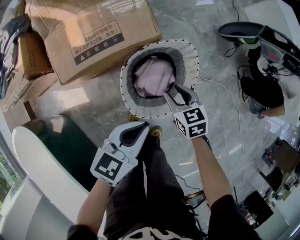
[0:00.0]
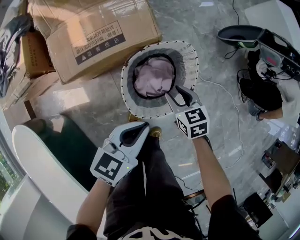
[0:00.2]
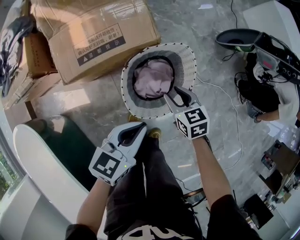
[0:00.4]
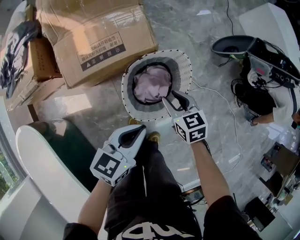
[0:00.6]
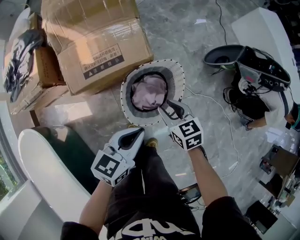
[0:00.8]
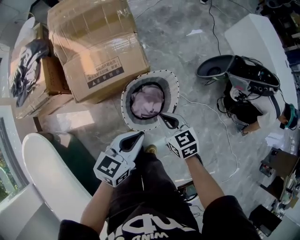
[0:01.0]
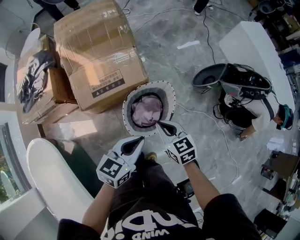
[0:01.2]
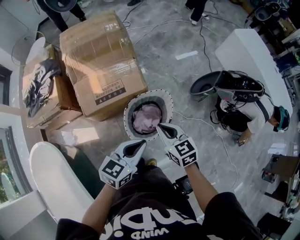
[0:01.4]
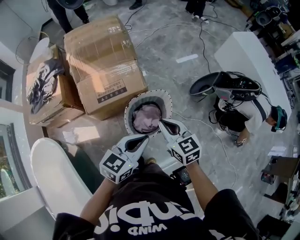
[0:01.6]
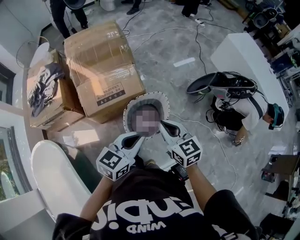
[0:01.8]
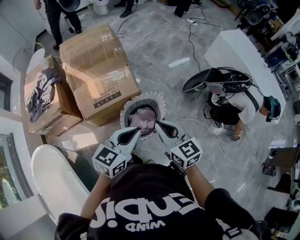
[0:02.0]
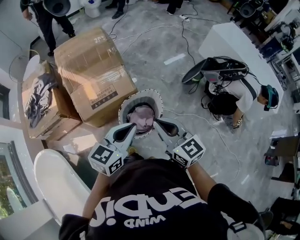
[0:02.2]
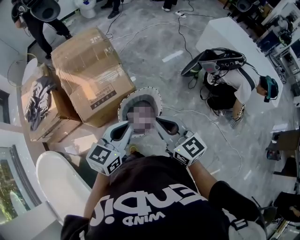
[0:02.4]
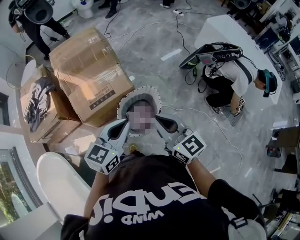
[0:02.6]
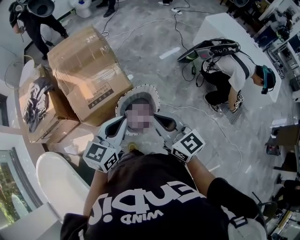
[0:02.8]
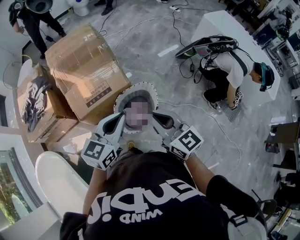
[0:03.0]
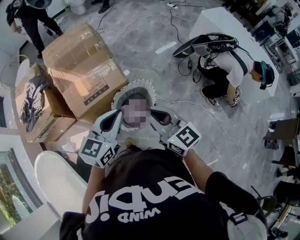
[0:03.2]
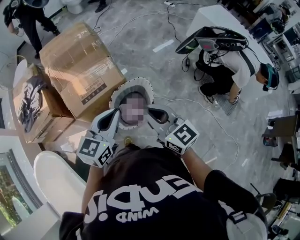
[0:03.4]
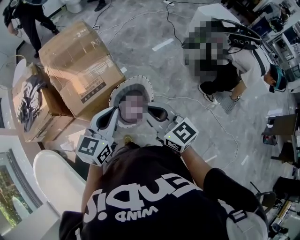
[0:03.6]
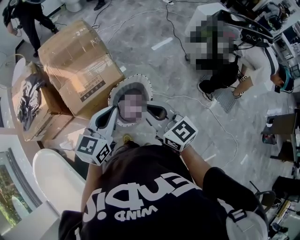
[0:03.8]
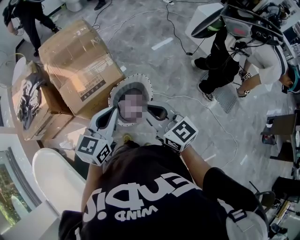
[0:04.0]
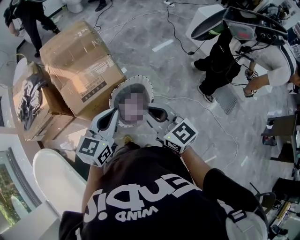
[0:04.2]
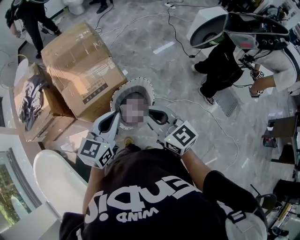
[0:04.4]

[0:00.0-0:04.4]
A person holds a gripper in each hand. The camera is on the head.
0:00.0 to 0:01.4: The two grippers go approximately 25 cm upward. The right gripper closes.
0:01.4 to 0:03.0: The left gripper is displaced upward by some 10 cm, while the right gripper goes about 20 cm upward and backward, and changes its angle by some 30 degrees.
0:03.0 to 0:04.4: The grippers make only small movements.

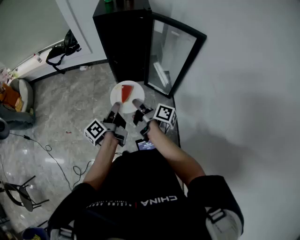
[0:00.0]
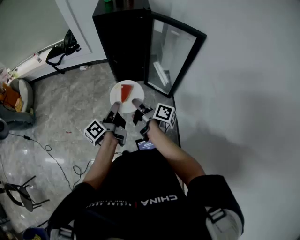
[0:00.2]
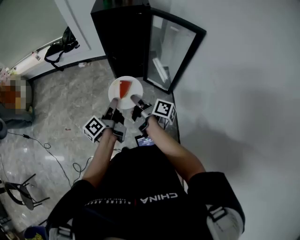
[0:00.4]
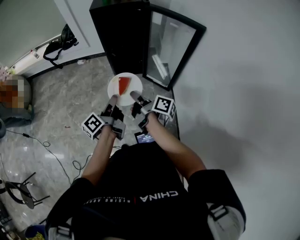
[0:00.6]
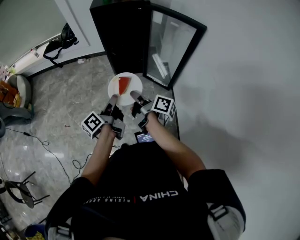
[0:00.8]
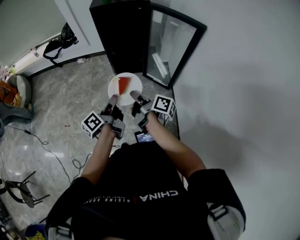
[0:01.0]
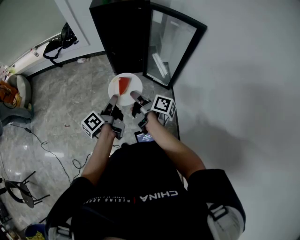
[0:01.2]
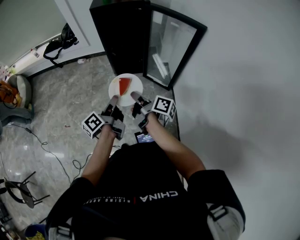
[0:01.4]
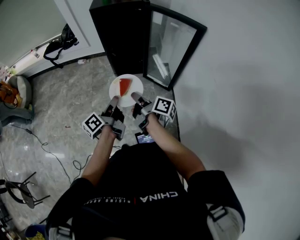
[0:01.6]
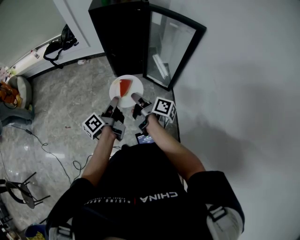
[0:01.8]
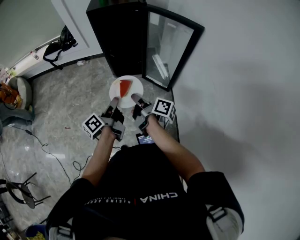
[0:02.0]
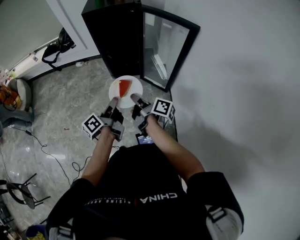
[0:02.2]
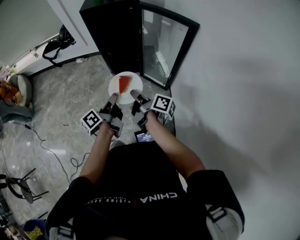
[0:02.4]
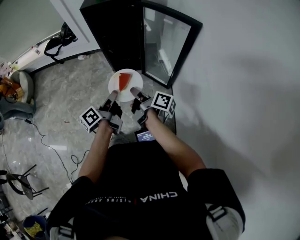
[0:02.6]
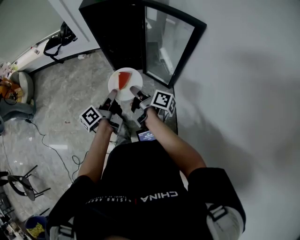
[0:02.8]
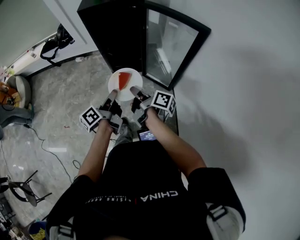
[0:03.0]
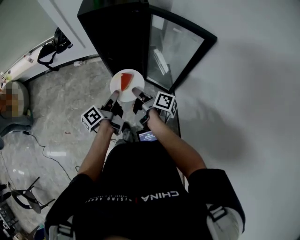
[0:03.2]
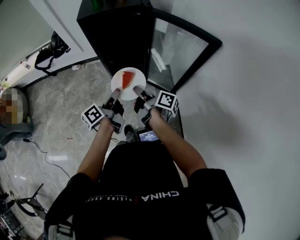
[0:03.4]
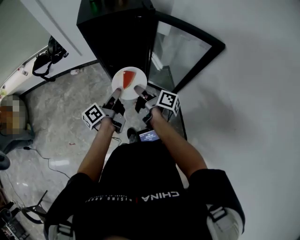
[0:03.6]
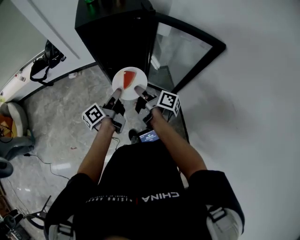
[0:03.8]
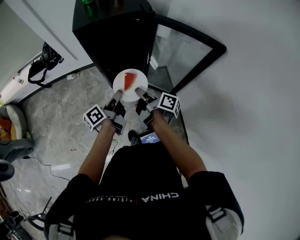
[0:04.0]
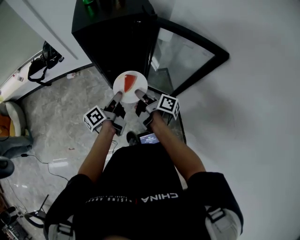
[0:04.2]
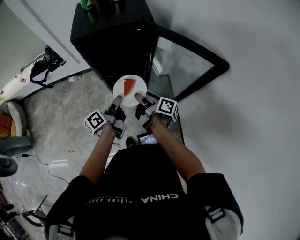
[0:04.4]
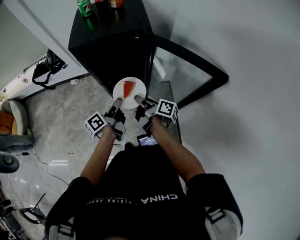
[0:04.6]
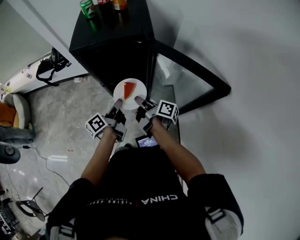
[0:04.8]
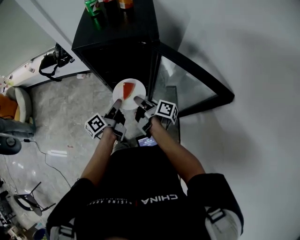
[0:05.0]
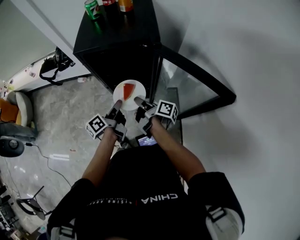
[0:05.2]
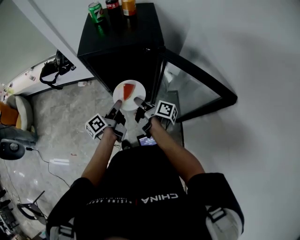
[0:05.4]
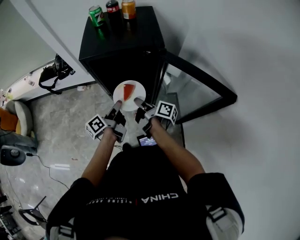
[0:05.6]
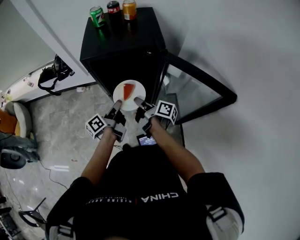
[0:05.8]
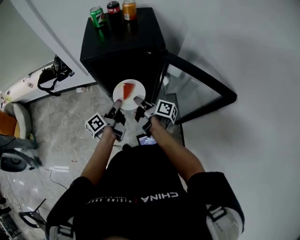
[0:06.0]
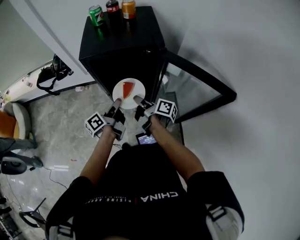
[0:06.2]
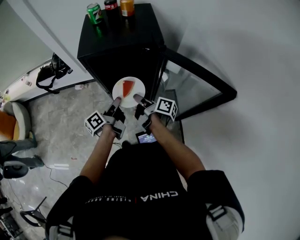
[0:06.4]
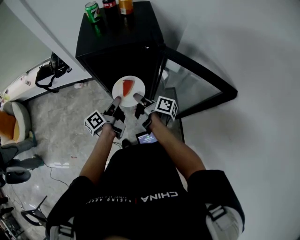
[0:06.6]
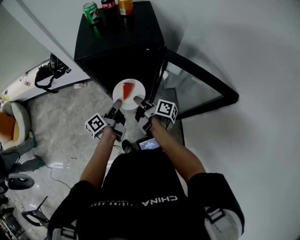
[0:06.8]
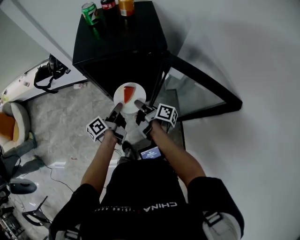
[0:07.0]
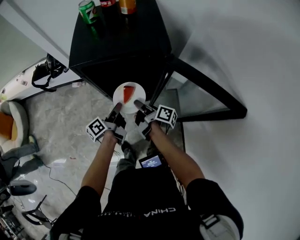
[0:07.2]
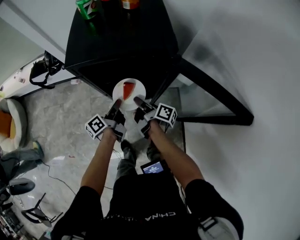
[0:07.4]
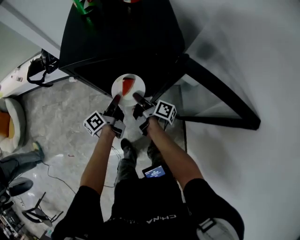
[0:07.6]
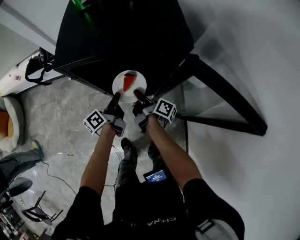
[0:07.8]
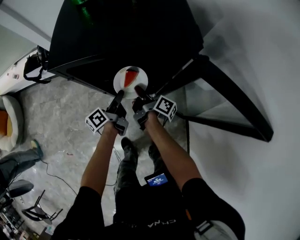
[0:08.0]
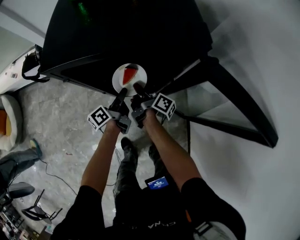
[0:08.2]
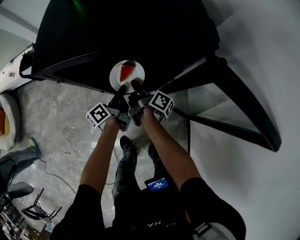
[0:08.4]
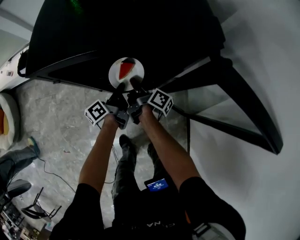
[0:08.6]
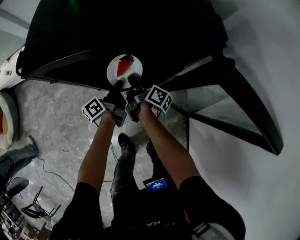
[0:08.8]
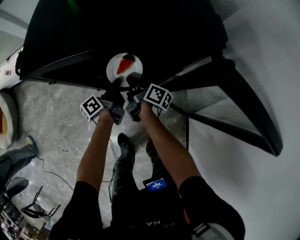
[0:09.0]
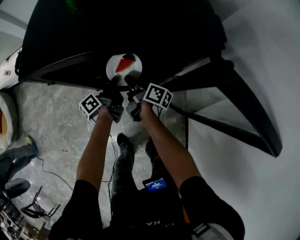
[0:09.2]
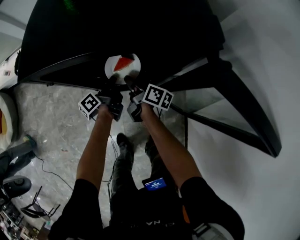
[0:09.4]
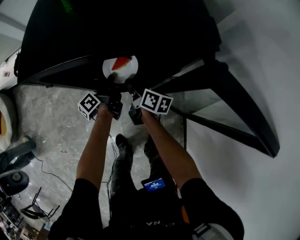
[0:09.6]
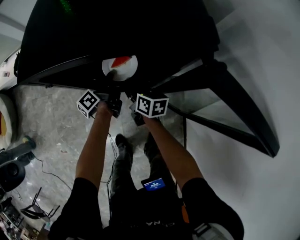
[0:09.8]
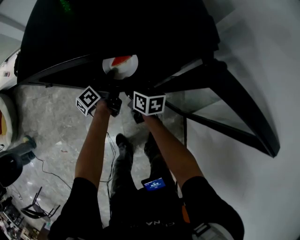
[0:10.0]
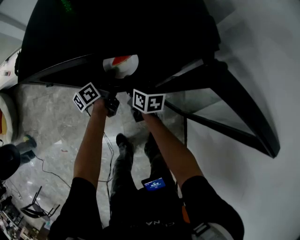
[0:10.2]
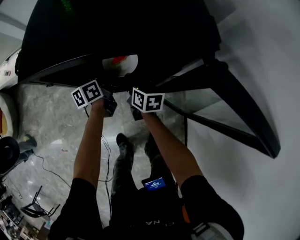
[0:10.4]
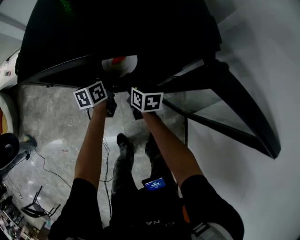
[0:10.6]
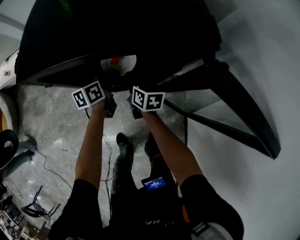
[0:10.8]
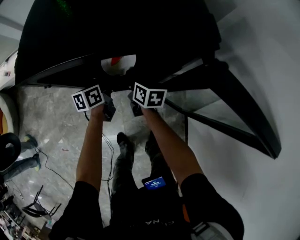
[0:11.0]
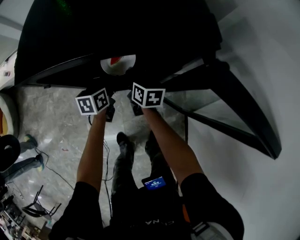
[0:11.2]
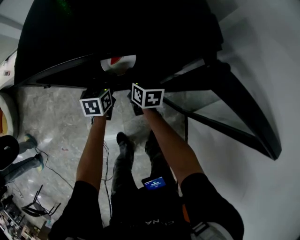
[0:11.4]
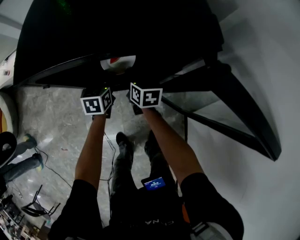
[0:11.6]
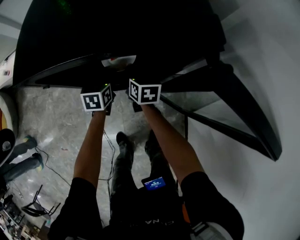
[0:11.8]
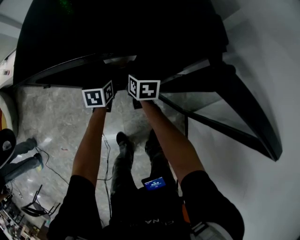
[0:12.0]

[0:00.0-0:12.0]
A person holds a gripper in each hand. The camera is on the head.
0:00.0 to 0:03.0: There are only small adjustments of the grippers.
0:03.0 to 0:04.4: The grippers both shift downward by roughly 5 cm.
0:04.4 to 0:07.6: There are only small adjustments of the grippers.
0:07.6 to 0:09.0: The left gripper opens, then closes once more.
0:09.0 to 0:10.4: The right gripper twists about 40 degrees counterclockwise, seen from behind, while the left gripper heads forward, covering approximately 5 cm, and changes its angle by approximately 30 degrees.
0:10.4 to 0:12.0: The left gripper changes its angle by roughly 40 degrees; the right gripper moves about 5 cm.

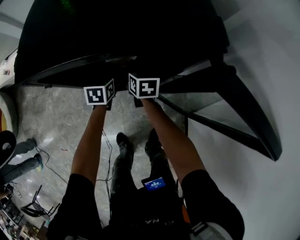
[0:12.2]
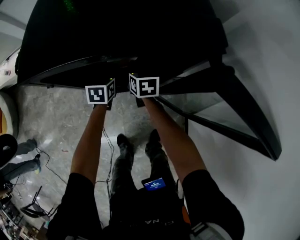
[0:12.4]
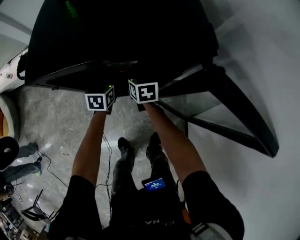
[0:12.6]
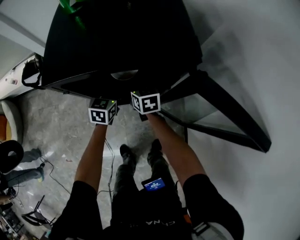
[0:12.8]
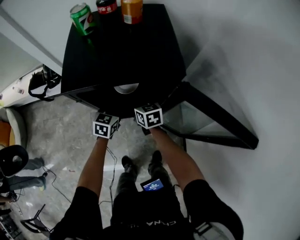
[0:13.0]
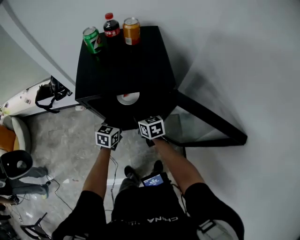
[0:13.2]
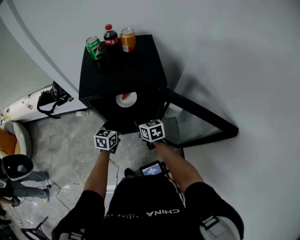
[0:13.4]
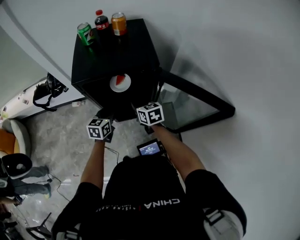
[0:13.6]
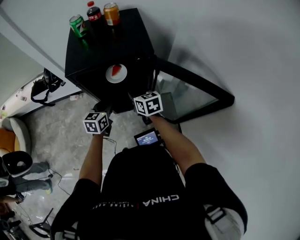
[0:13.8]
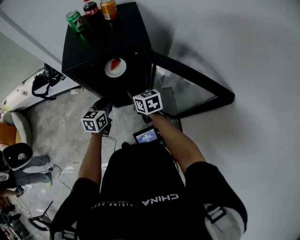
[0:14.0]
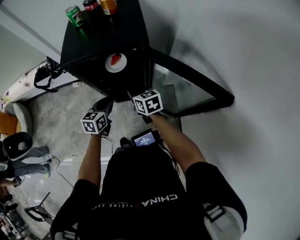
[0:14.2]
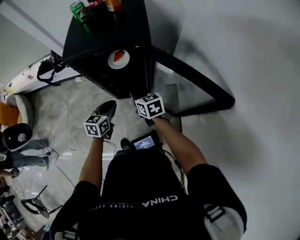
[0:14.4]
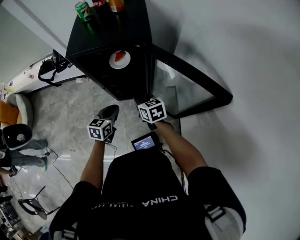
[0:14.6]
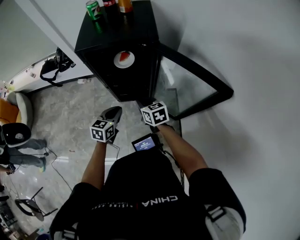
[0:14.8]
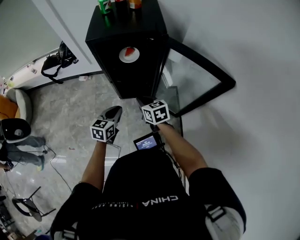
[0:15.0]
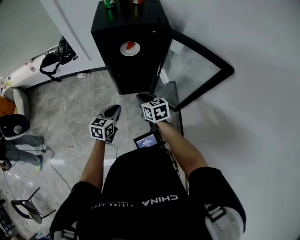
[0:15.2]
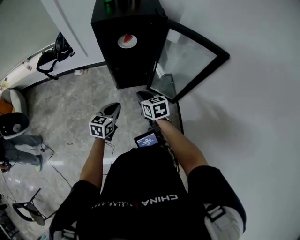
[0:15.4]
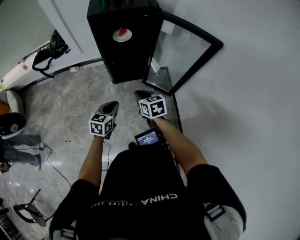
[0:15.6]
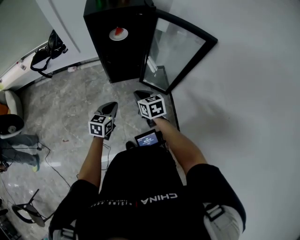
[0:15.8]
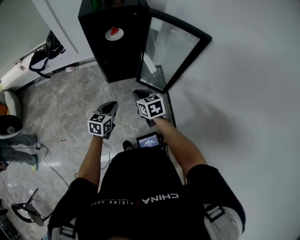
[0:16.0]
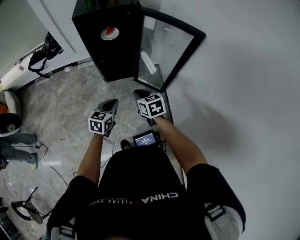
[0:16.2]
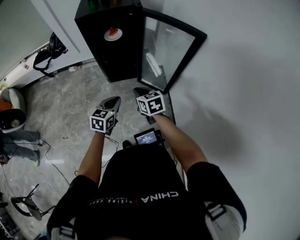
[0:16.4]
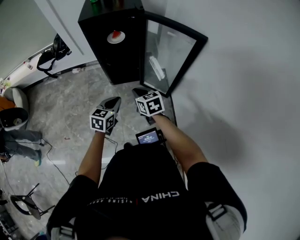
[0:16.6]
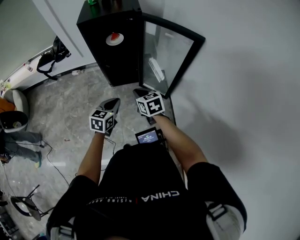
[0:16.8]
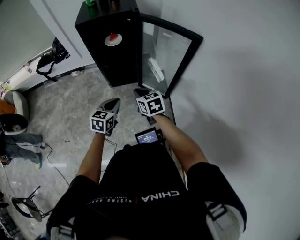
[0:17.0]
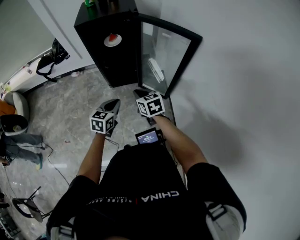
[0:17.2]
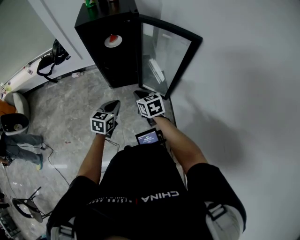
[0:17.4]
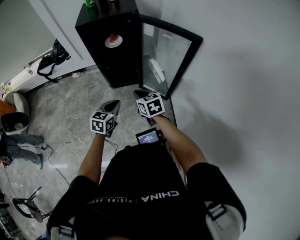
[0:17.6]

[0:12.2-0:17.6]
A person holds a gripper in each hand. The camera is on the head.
0:12.2 to 0:13.6: Both grippers travel together upward and backward, about 25 cm. The left gripper closes its fingers.
0:13.6 to 0:15.0: The two grippers go some 20 cm backward.
0:15.0 to 0:16.2: The two grippers go roughly 20 cm backward.
0:16.2 to 0:17.6: The grippers make only small movements.

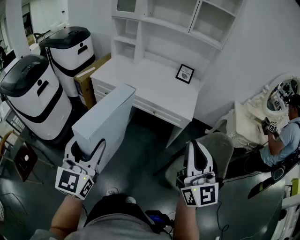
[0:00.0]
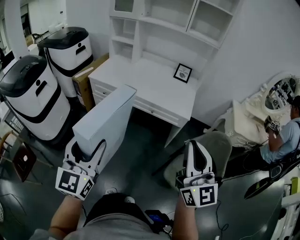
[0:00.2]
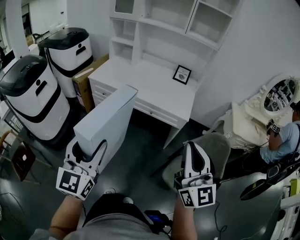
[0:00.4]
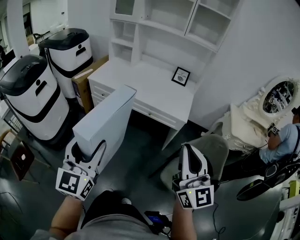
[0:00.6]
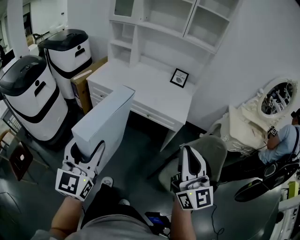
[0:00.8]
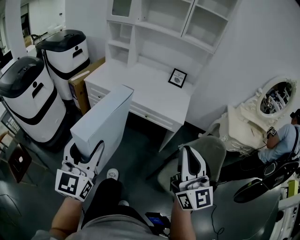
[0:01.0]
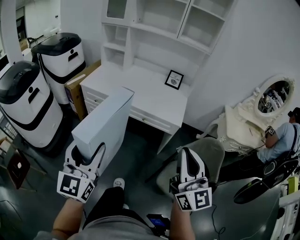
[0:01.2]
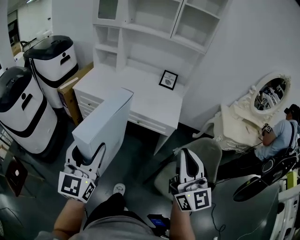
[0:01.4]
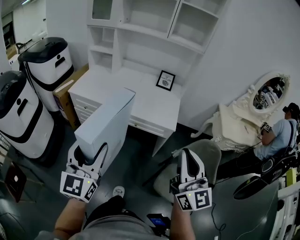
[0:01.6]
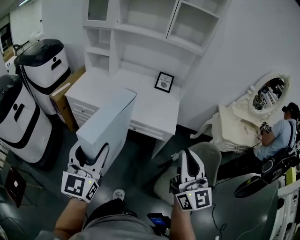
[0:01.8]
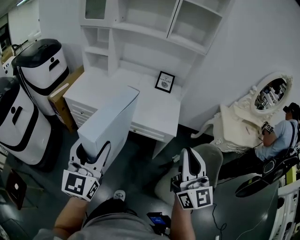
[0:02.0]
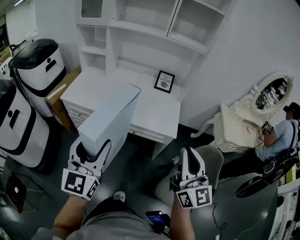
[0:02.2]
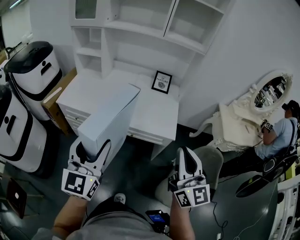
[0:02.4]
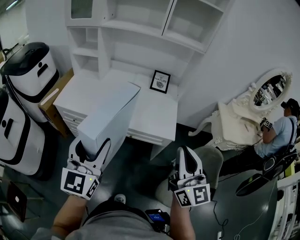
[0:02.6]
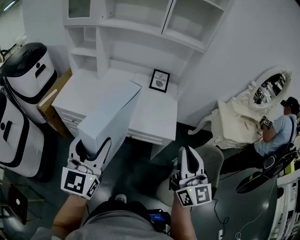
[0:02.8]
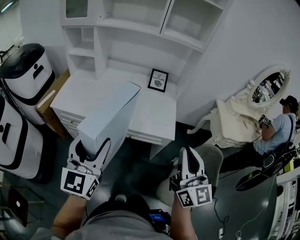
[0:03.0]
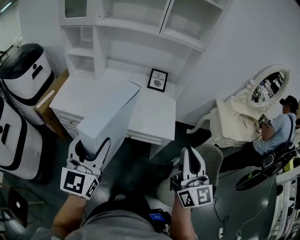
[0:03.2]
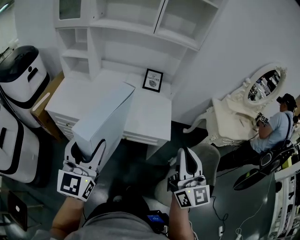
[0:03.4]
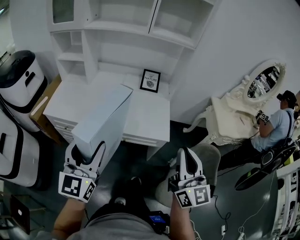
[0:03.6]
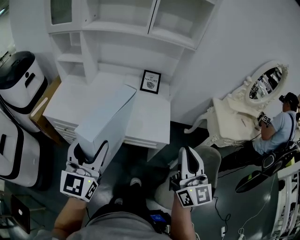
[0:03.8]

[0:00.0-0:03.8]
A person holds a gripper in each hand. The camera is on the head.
0:00.0 to 0:01.2: There are only small adjustments of the grippers.
0:01.2 to 0:02.6: The two grippers go about 25 cm forward.
0:02.6 to 0:03.8: Both grippers travel together forward, approximately 5 cm.
